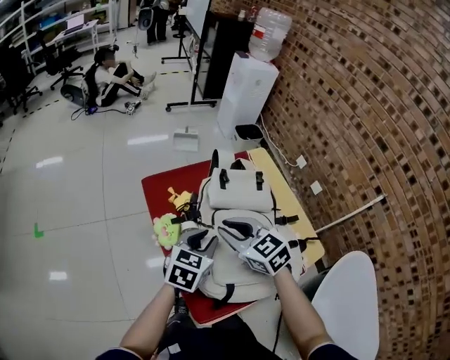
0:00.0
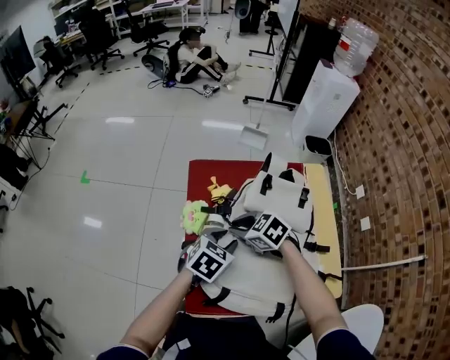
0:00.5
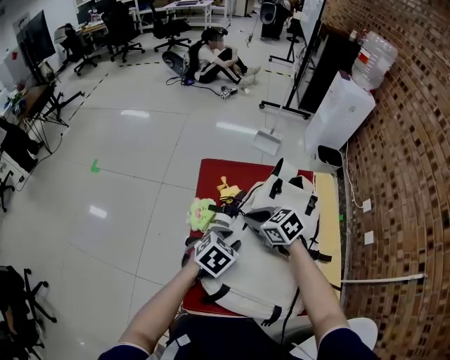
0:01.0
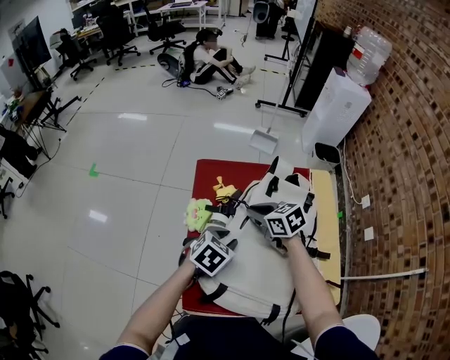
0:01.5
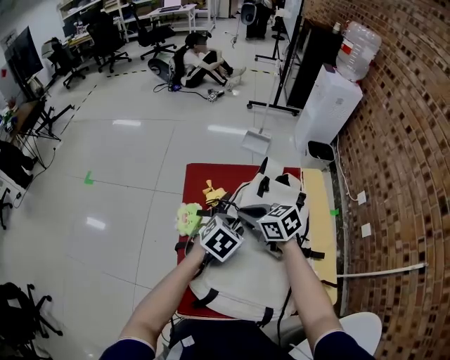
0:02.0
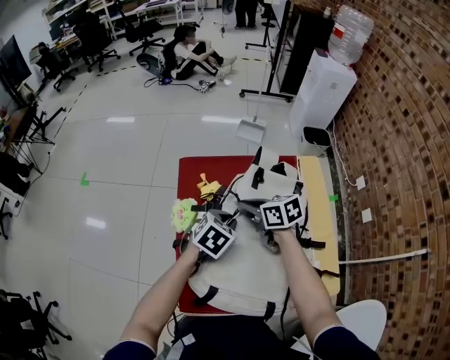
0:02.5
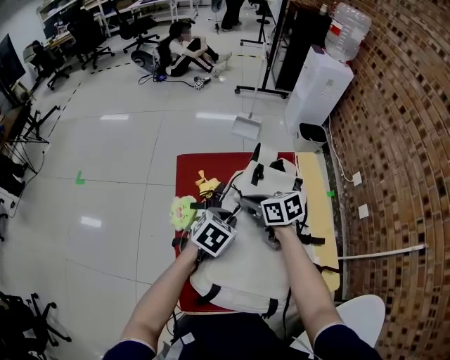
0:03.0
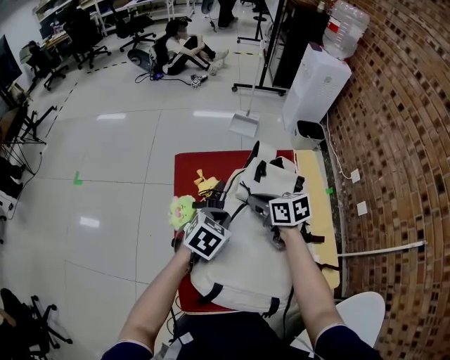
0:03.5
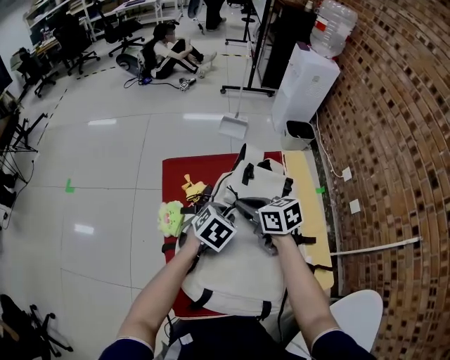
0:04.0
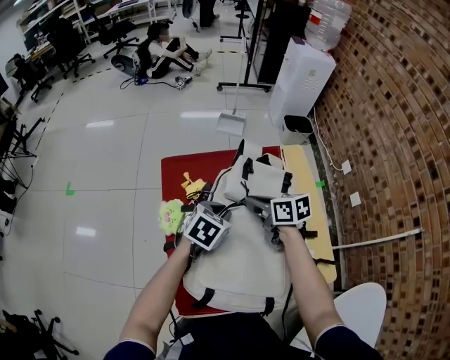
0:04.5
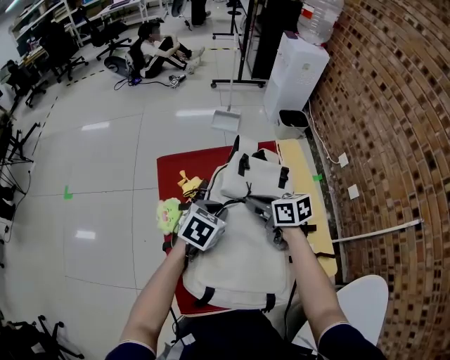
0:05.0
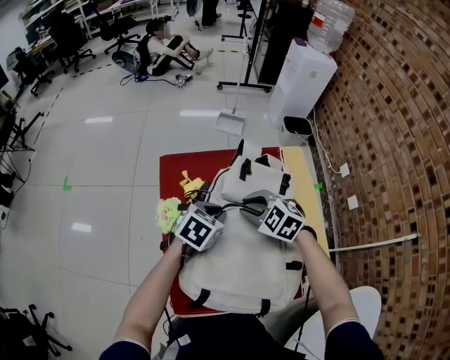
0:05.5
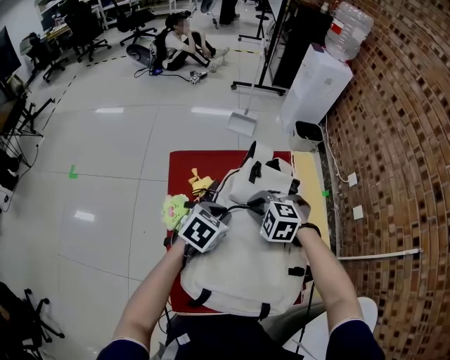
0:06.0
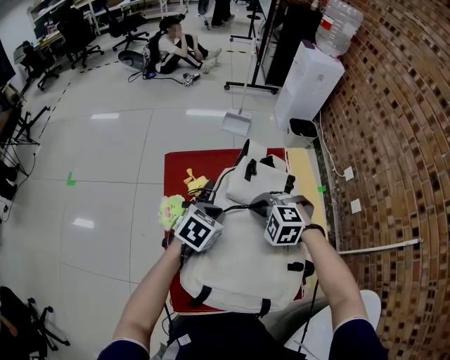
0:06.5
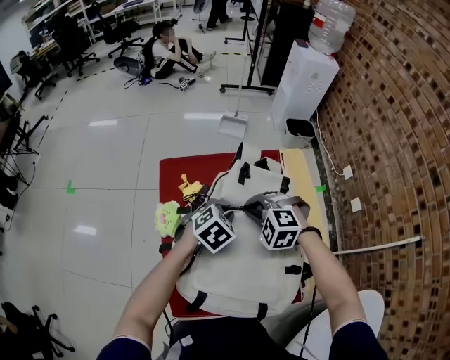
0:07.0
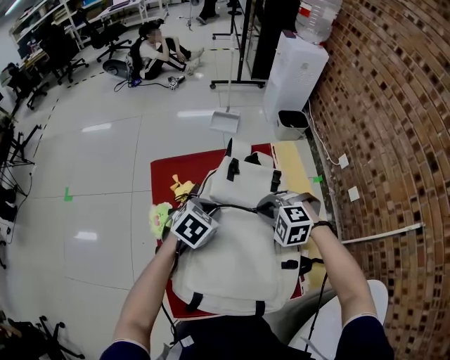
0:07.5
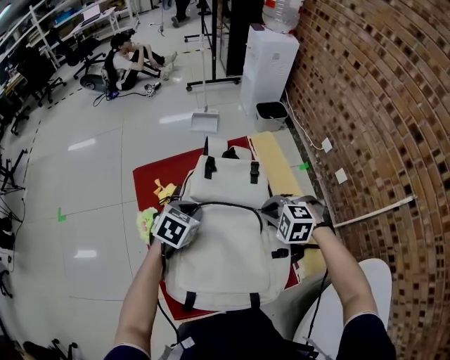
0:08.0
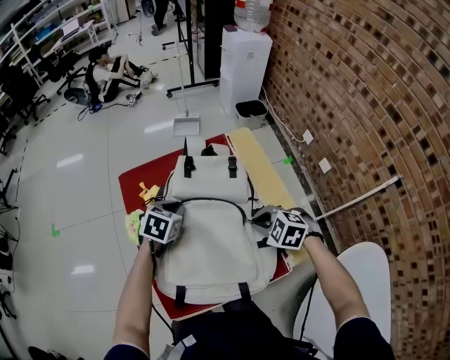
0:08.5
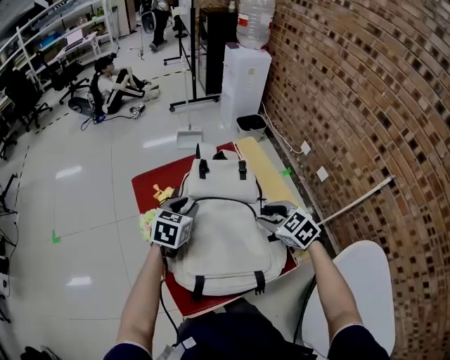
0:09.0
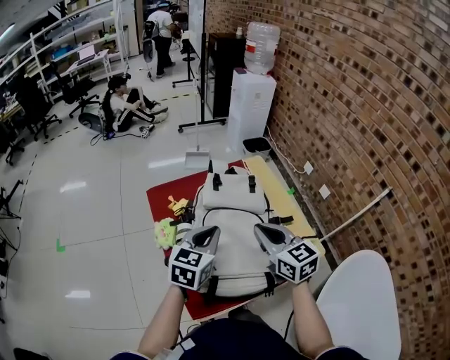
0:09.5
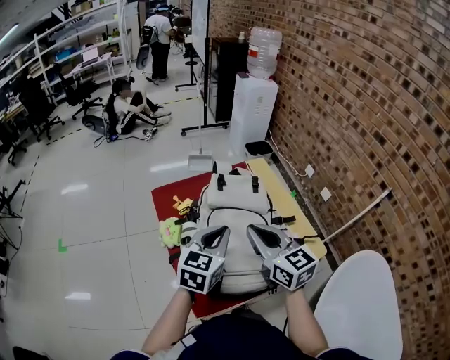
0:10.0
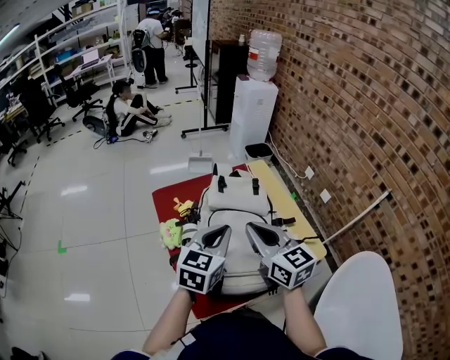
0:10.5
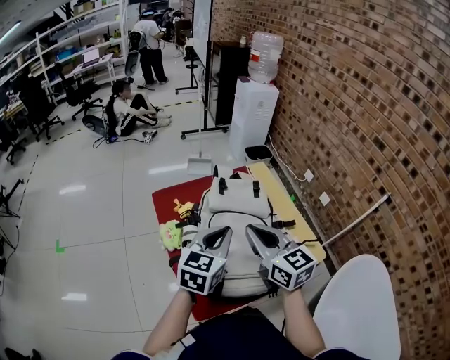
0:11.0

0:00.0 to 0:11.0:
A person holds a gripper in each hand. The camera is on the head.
0:00.0 to 0:02.0: The right gripper changes place by about 10 cm, and turns by some 30 degrees. Meanwhile the left gripper ends up roughly 10 cm from where it was, and swivels roughly 20 degrees.
0:02.0 to 0:03.5: The right gripper moves to the right, some 5 cm, and changes its angle by some 20 degrees. Meanwhile the left gripper closes up.
0:03.5 to 0:05.5: The right gripper rotates around the line of its fingers by about 50 degrees, counterclockwise from behind.
0:05.5 to 0:07.5: The right gripper shifts some 10 cm to the right, and turns by roughly 30 degrees.
0:07.5 to 0:09.0: The right gripper moves backward, to the right and upward, about 10 cm, rotates around the line of its fingers by some 50 degrees, clockwise from behind, and opens up. The left gripper shifts by some 5 cm, and opens.
0:09.0 to 0:11.0: The right gripper moves upward and to the left, about 20 cm, tilts its fingers roughly 40 degrees upward, and closes its fingers, while the left gripper goes roughly 15 cm upward and backward, rotates roughly 20 degrees, and closes.

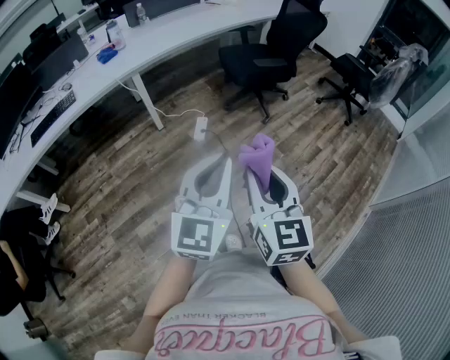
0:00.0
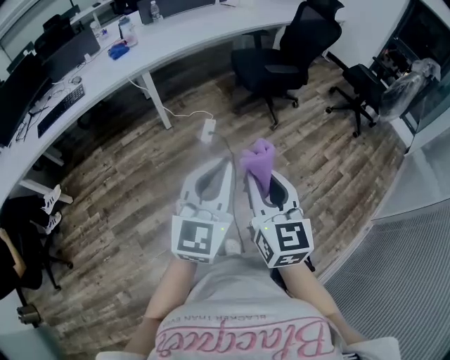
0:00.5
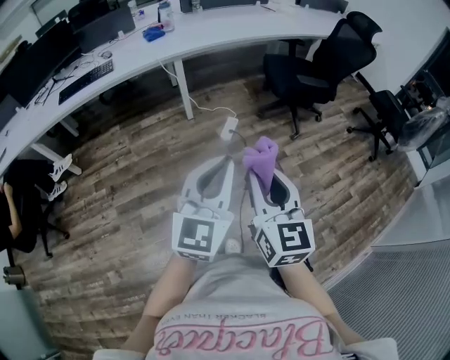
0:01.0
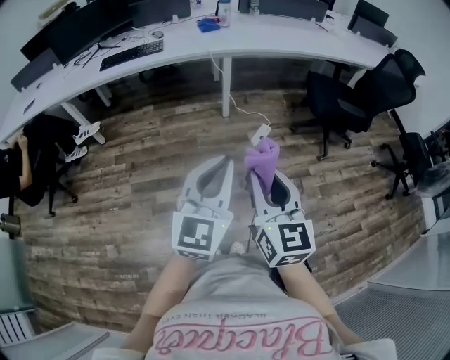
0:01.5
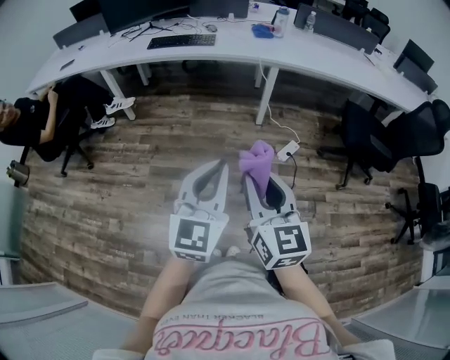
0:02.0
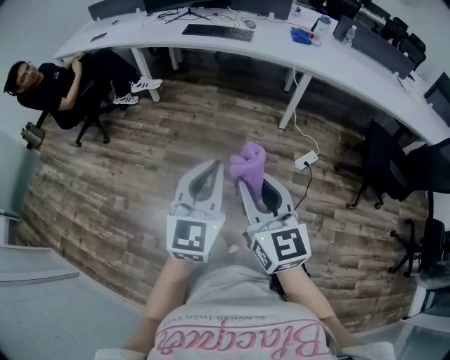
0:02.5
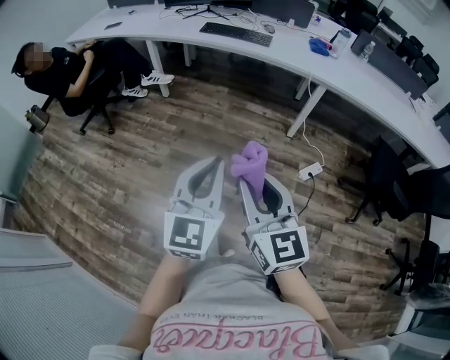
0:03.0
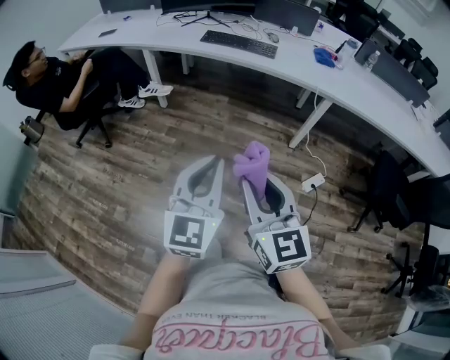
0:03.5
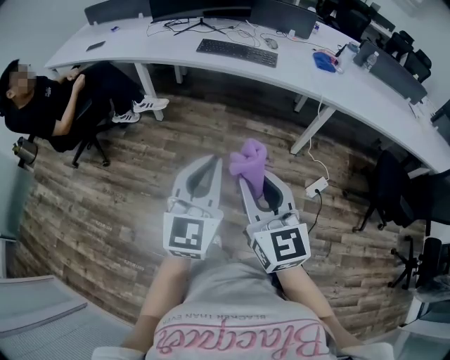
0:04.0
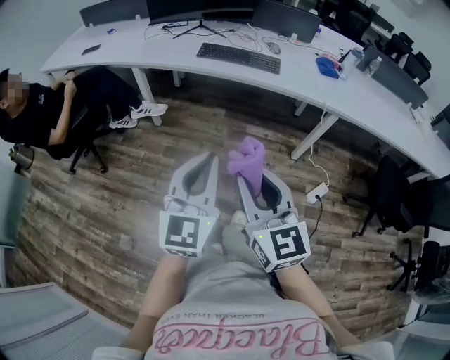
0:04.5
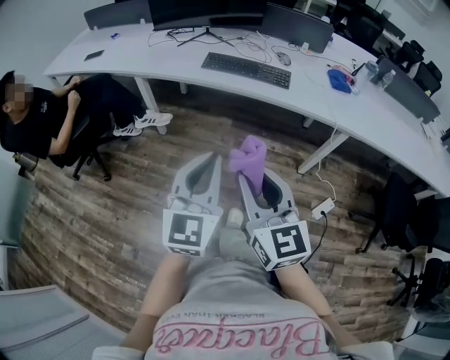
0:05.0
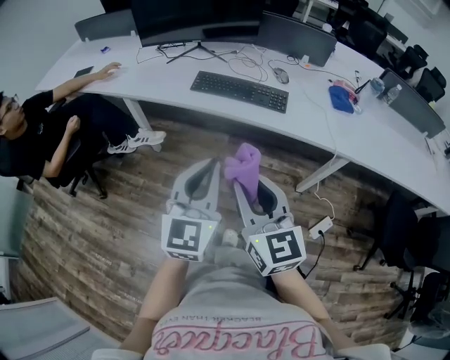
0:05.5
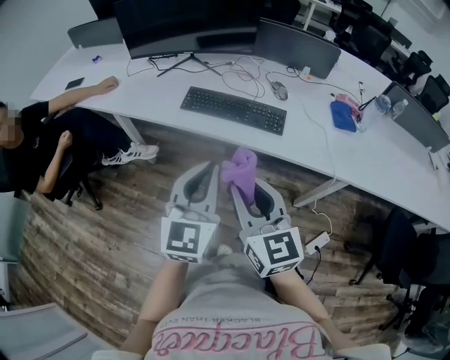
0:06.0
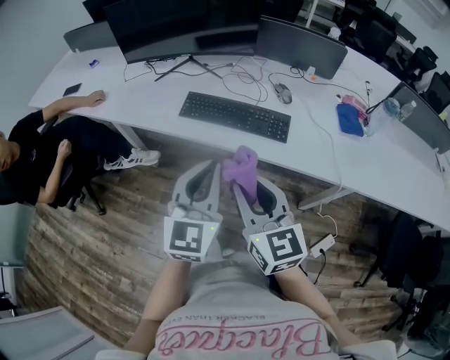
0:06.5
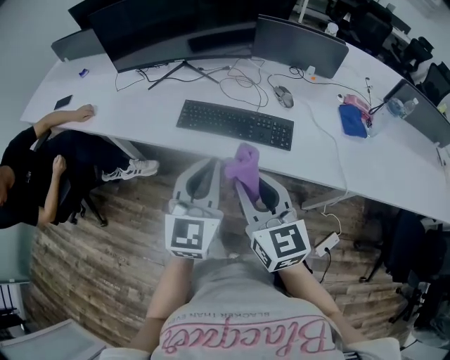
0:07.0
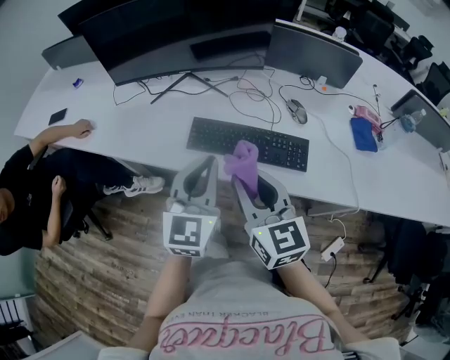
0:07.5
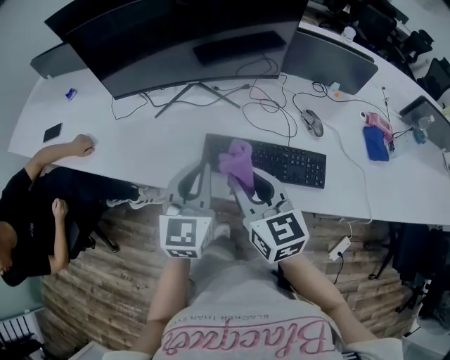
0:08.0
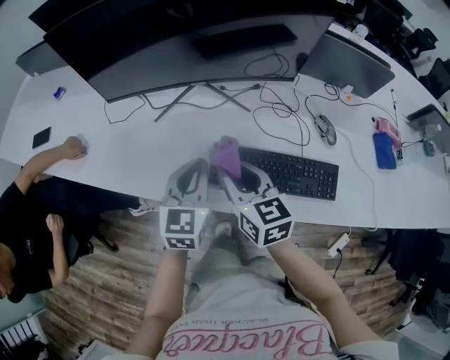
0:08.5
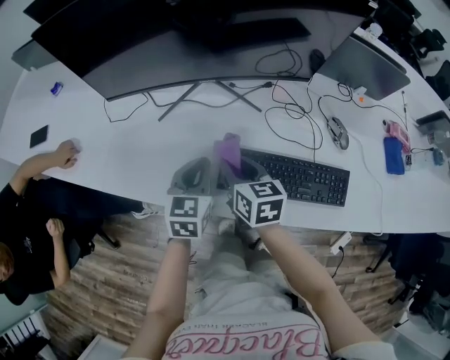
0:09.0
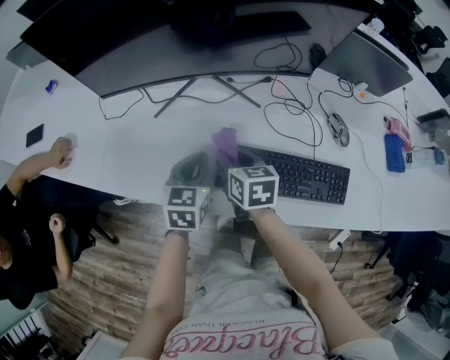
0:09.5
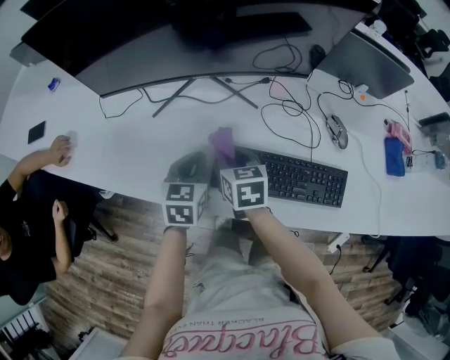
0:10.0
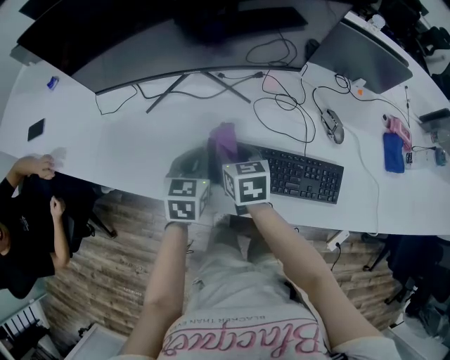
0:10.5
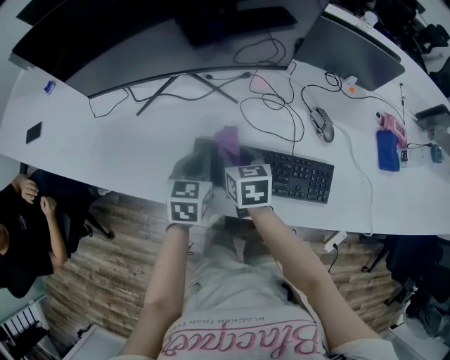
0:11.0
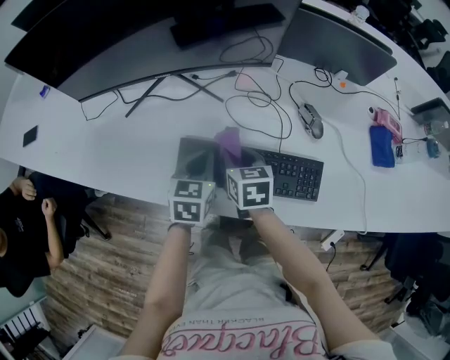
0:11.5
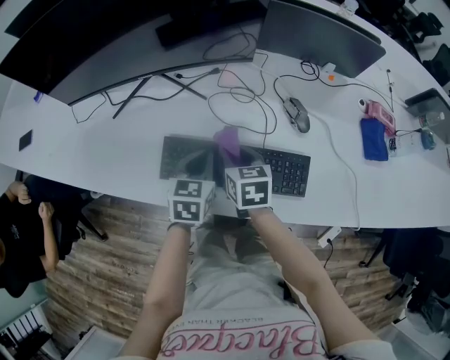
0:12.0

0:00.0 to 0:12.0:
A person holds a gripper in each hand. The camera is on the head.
0:00.0 to 0:02.0: The left gripper shifts by approximately 25 cm, and swivels some 40 degrees. The right gripper shifts by some 20 cm, and changes its angle by some 40 degrees.
0:02.0 to 0:04.0: Both grippers travel together forward and to the left, about 35 cm.
0:04.0 to 0:06.0: The pair of grippers is taken forward, roughly 40 cm.
0:06.0 to 0:08.0: The two grippers go some 35 cm forward.
0:08.0 to 0:10.0: Both grippers move downward and forward, about 25 cm. The left gripper swivels some 30 degrees. The right gripper rotates about 30 degrees.
0:10.0 to 0:12.0: The grippers both shift to the right by some 20 cm.

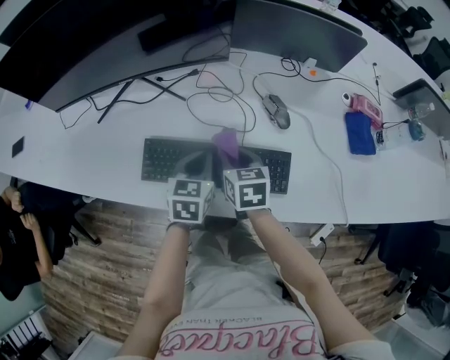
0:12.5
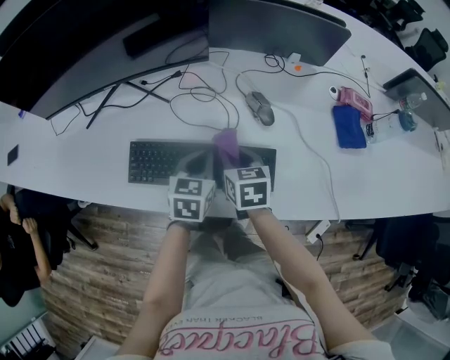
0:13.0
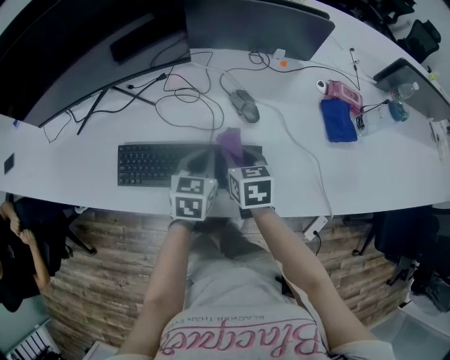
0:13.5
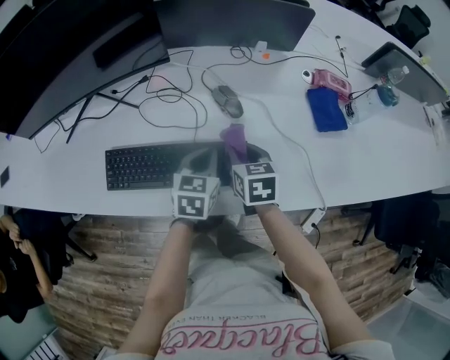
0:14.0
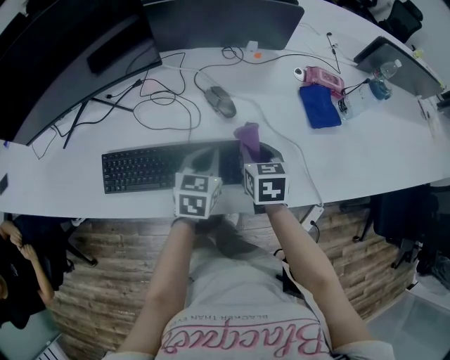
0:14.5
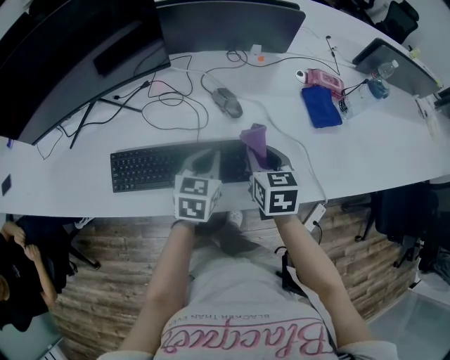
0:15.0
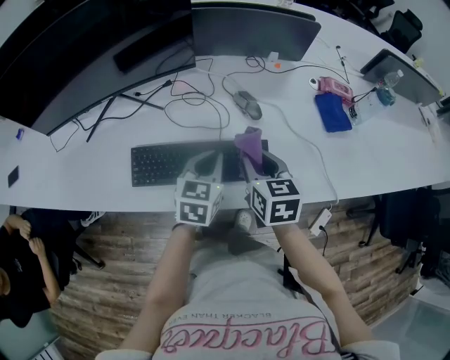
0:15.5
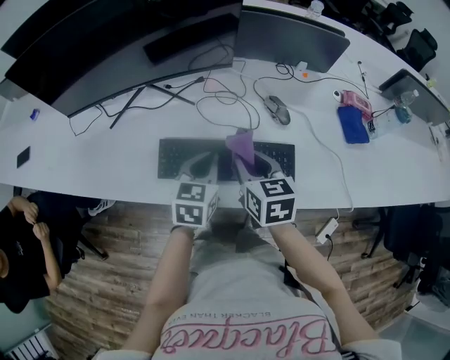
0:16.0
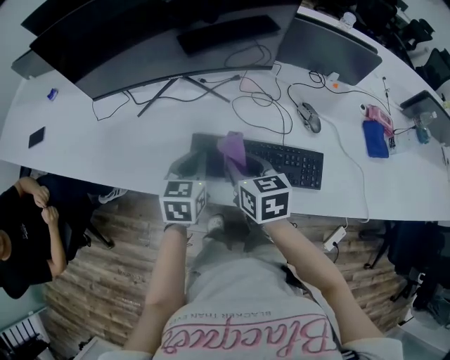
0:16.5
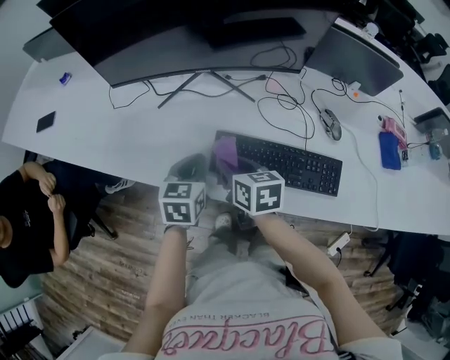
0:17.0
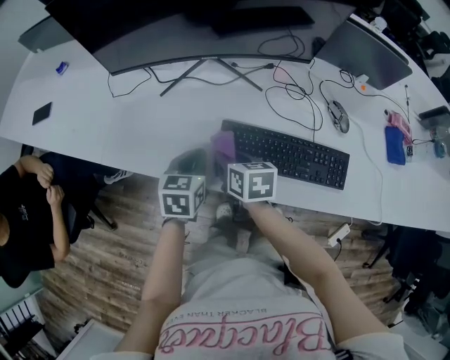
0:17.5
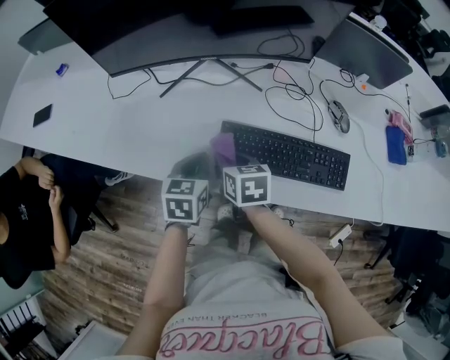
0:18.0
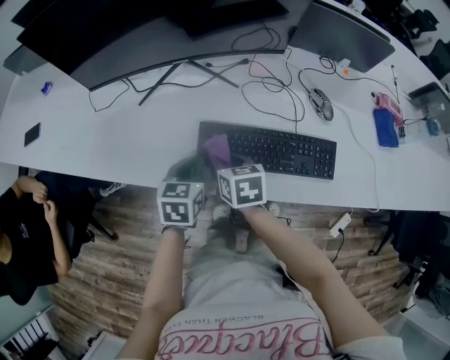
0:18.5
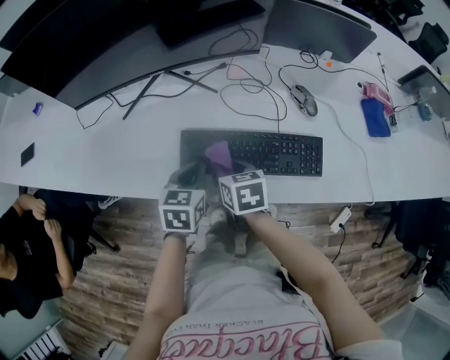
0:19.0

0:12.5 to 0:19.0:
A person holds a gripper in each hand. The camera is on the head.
0:12.5 to 0:14.5: The grippers both shift to the right by about 20 cm.
0:14.5 to 0:17.0: The two grippers travel together, about 40 cm. The left gripper swivels roughly 20 degrees, while the right gripper rotates some 30 degrees.
0:17.0 to 0:19.0: Both grippers move to the right, some 10 cm.
